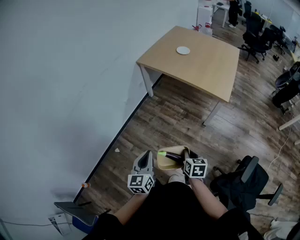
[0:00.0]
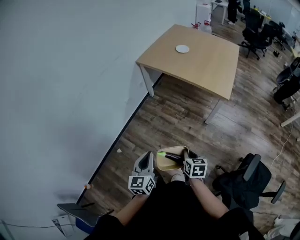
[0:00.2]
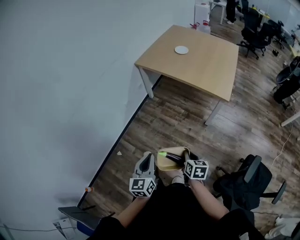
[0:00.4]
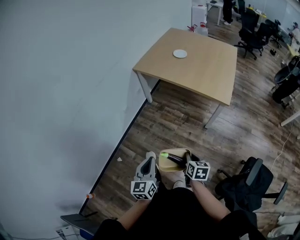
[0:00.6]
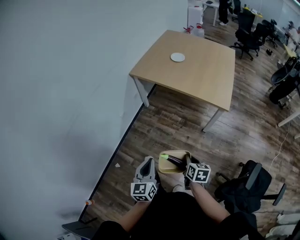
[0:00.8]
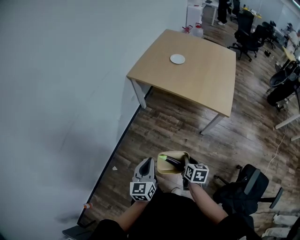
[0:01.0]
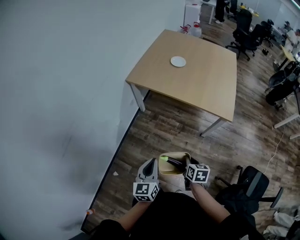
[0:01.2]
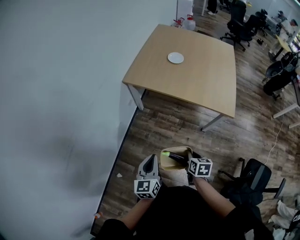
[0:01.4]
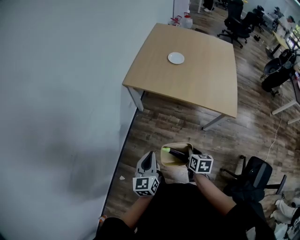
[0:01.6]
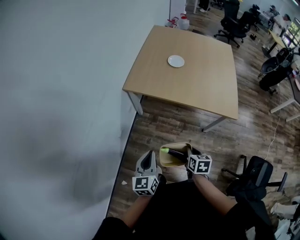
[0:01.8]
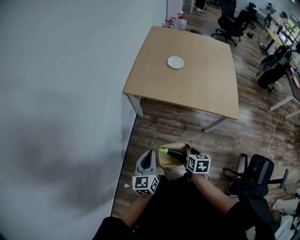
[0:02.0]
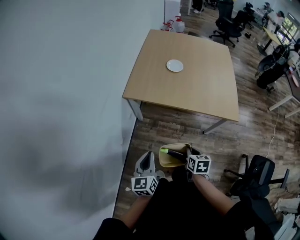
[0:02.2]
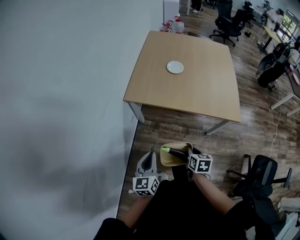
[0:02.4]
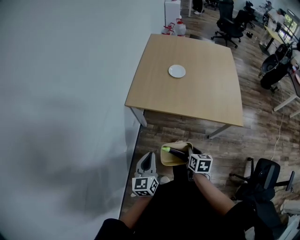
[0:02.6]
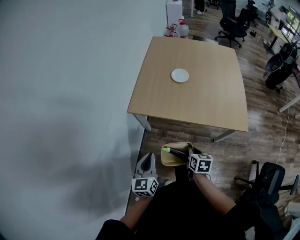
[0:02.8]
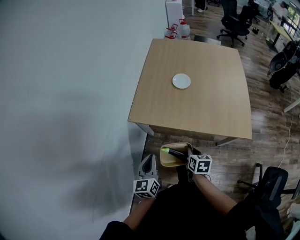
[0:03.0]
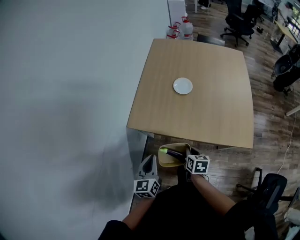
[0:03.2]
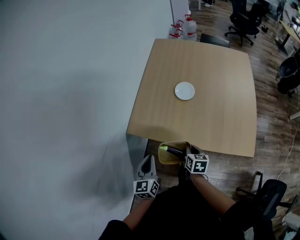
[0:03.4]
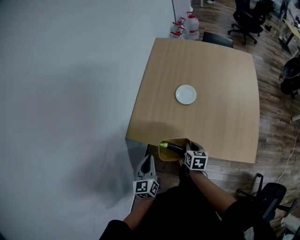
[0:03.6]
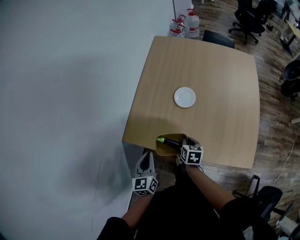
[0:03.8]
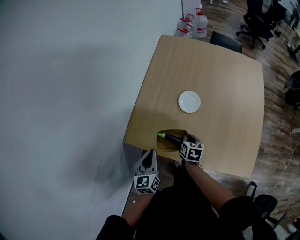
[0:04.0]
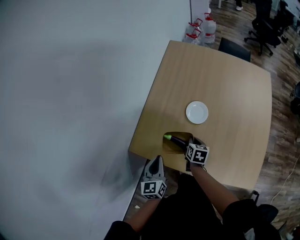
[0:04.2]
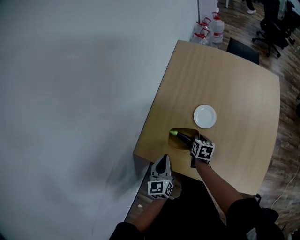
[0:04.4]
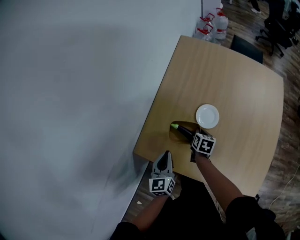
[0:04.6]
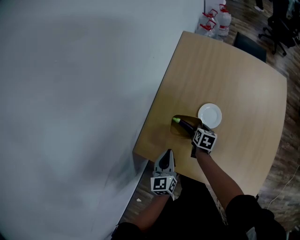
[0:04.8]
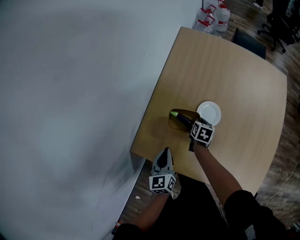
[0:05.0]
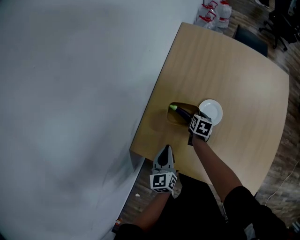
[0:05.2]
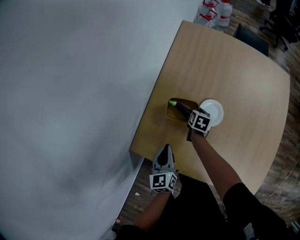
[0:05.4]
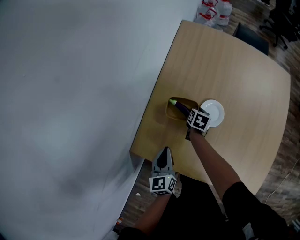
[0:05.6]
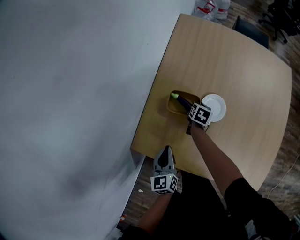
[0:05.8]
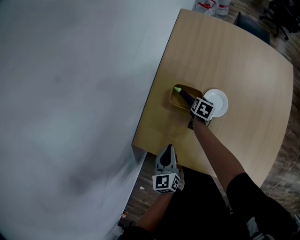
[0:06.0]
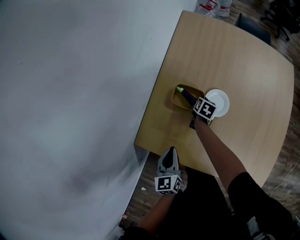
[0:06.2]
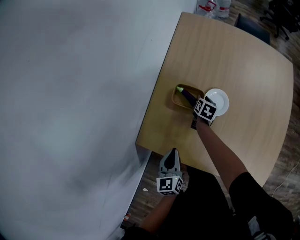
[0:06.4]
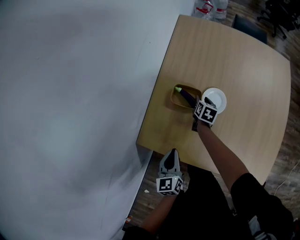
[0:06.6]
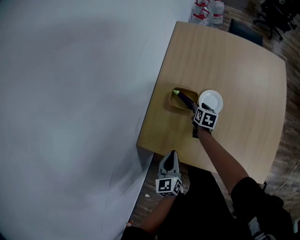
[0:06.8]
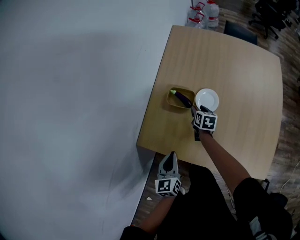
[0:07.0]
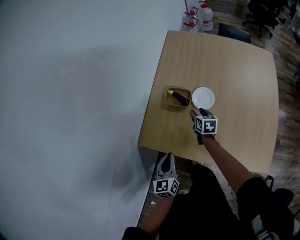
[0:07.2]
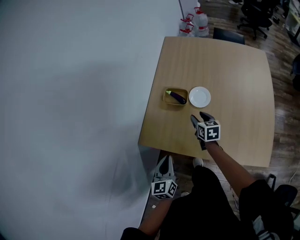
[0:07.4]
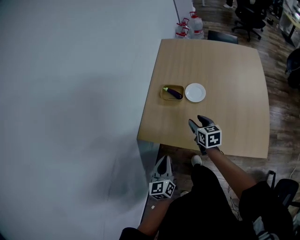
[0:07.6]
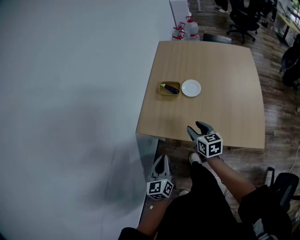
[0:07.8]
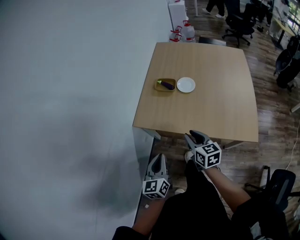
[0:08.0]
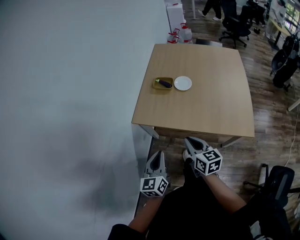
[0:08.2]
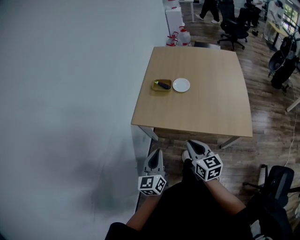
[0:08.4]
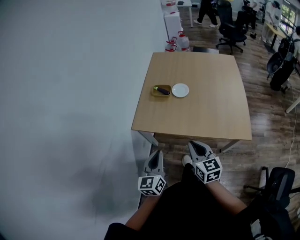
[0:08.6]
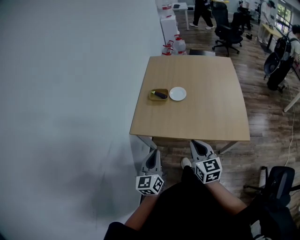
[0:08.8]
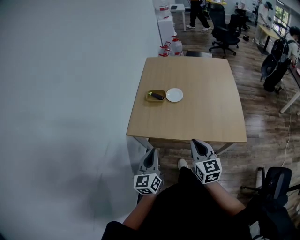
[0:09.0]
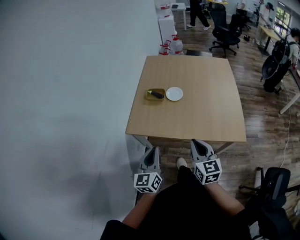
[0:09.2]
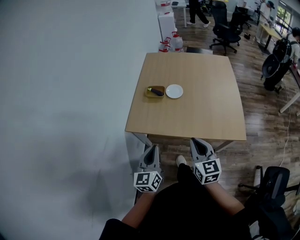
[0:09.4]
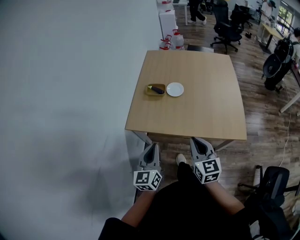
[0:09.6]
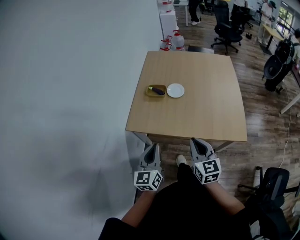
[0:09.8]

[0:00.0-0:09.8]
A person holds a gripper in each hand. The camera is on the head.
0:00.0 to 0:01.4: Both grippers move forward, approximately 30 cm.
0:01.4 to 0:02.8: The two grippers go roughly 25 cm forward and to the left.
0:02.8 to 0:04.2: The two grippers go roughly 40 cm forward.
0:04.2 to 0:05.6: The left gripper shifts roughly 10 cm forward; the right gripper heads forward and downward, covering some 20 cm.
0:05.6 to 0:07.0: The right gripper goes some 10 cm backward and upward, and opens its fingers. The left gripper moves backward, roughly 10 cm.
0:07.0 to 0:08.4: The right gripper goes some 60 cm backward and upward, changes its angle by about 30 degrees, and closes up. Meanwhile the left gripper goes approximately 30 cm backward and upward.
0:08.4 to 0:09.8: The left gripper shifts roughly 5 cm forward. The right gripper ends up about 5 cm from where it was.

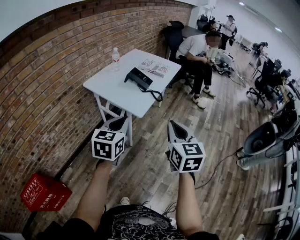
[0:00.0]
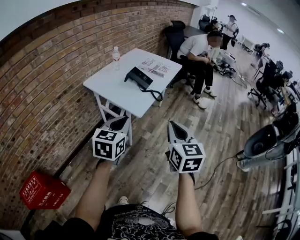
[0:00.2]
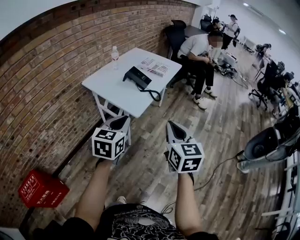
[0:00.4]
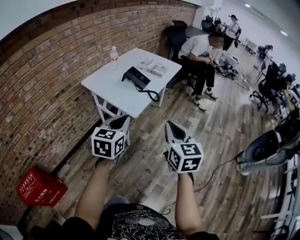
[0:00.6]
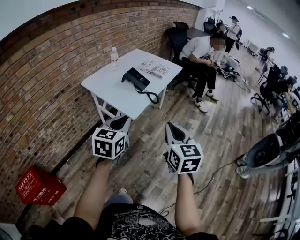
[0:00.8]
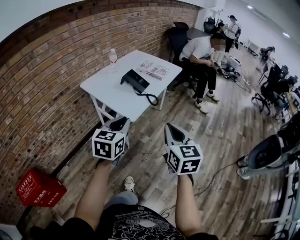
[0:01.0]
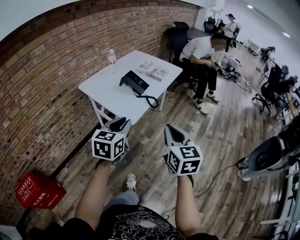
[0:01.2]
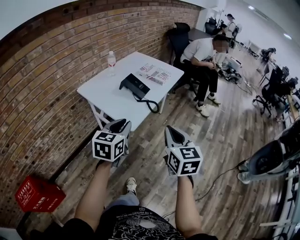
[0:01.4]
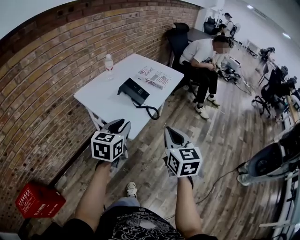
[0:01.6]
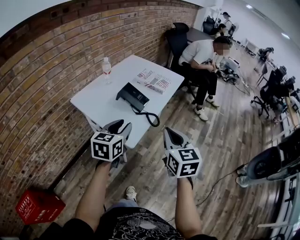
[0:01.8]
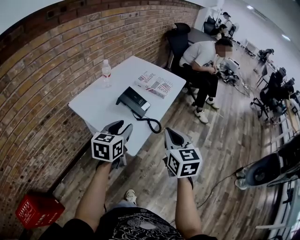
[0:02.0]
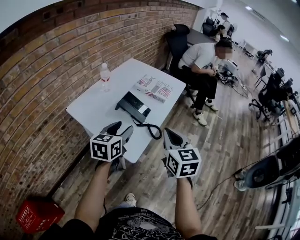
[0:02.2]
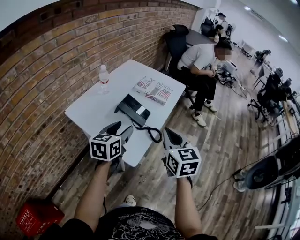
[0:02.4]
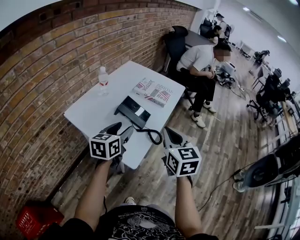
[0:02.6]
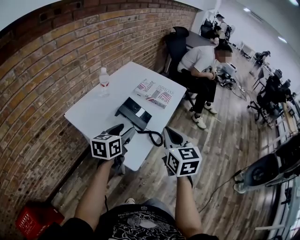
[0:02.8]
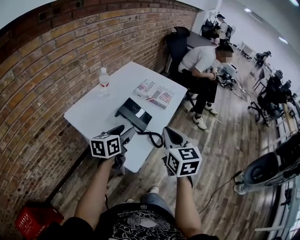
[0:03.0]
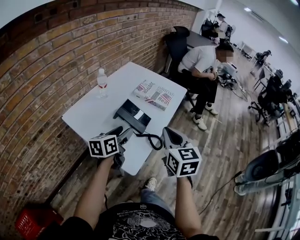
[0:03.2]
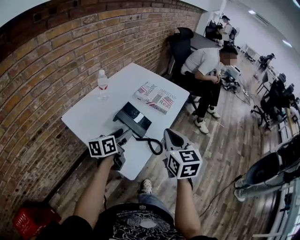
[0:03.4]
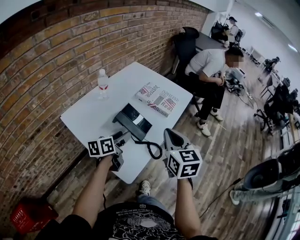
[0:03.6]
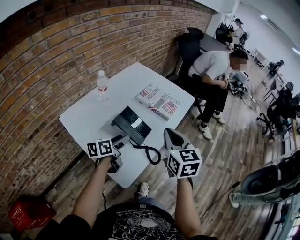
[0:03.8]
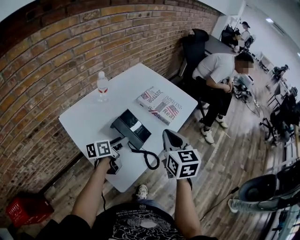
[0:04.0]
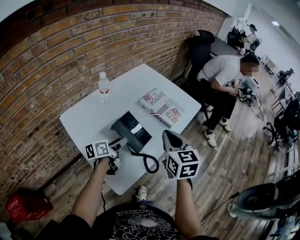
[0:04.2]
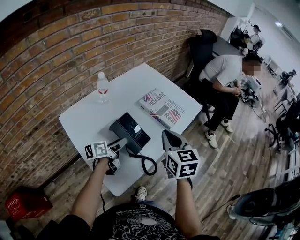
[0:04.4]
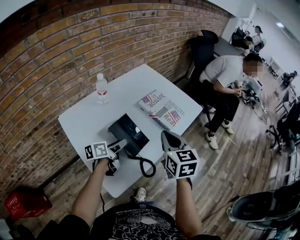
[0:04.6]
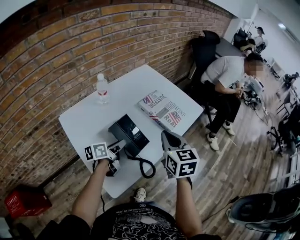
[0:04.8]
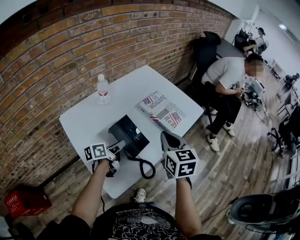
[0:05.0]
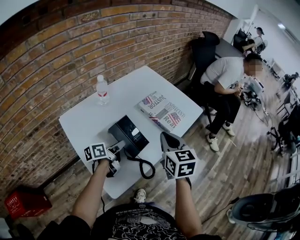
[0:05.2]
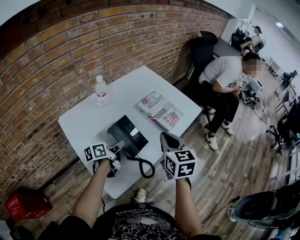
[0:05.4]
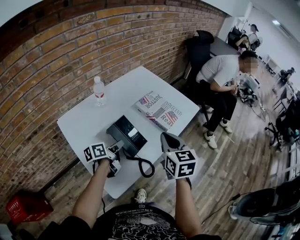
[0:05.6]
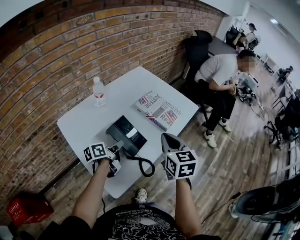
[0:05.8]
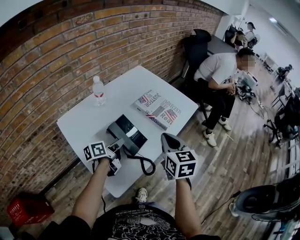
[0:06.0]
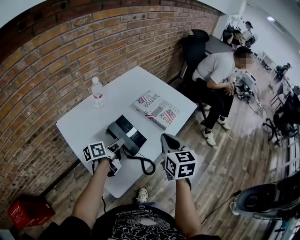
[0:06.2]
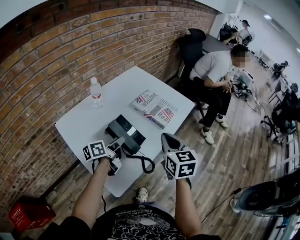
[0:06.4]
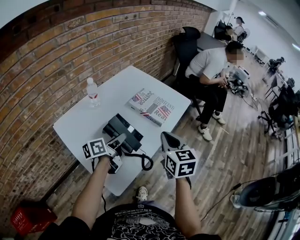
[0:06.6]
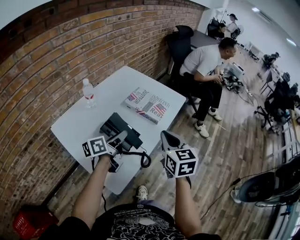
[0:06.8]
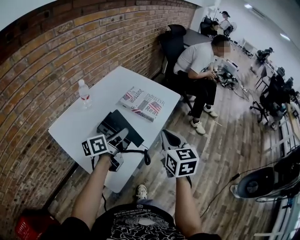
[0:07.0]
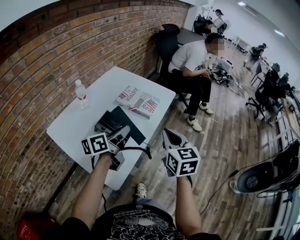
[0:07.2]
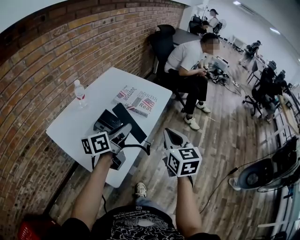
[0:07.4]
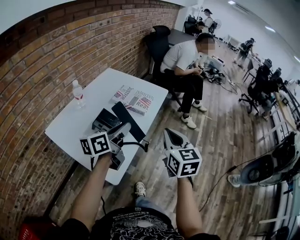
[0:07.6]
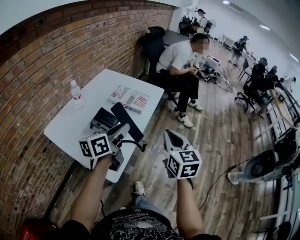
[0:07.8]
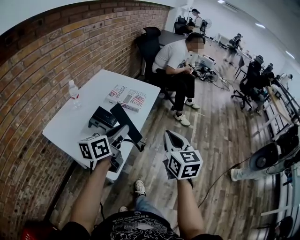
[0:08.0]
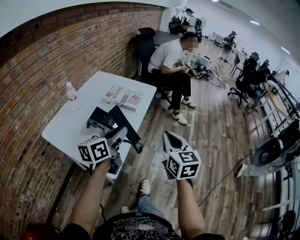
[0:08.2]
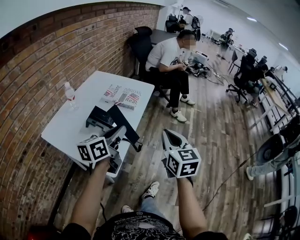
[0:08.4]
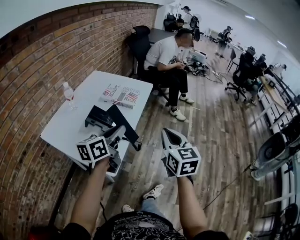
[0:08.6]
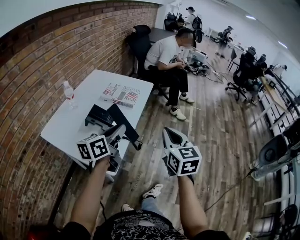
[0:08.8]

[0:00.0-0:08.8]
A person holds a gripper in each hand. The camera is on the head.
0:00.0 to 0:01.4: The left gripper heads forward and to the right, covering approximately 15 cm, while the right gripper heads forward, covering some 10 cm.
0:01.4 to 0:03.0: The grippers both shift forward by some 25 cm. The left gripper swivels some 20 degrees, and opens its fingers.
0:03.0 to 0:04.4: The left gripper moves forward and downward, some 20 cm, and rotates roughly 30 degrees, while the right gripper is displaced forward by some 20 cm.
0:04.4 to 0:05.8: The left gripper closes.
0:05.8 to 0:07.4: The right gripper moves backward and to the right, some 15 cm. Meanwhile the left gripper shifts roughly 20 cm upward and to the right, and swivels approximately 30 degrees.
0:07.4 to 0:08.8: The left gripper moves backward, about 10 cm. The right gripper moves backward and to the right, roughly 10 cm.

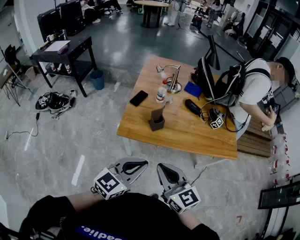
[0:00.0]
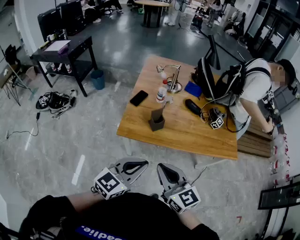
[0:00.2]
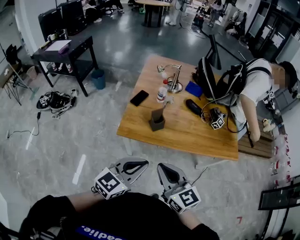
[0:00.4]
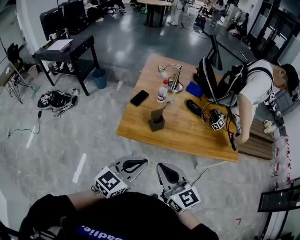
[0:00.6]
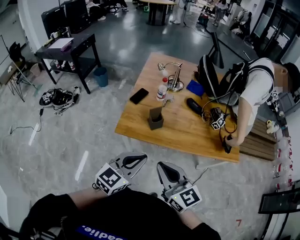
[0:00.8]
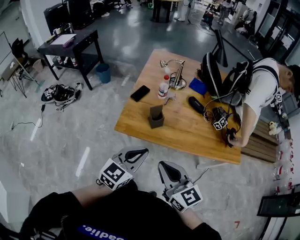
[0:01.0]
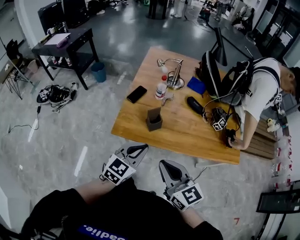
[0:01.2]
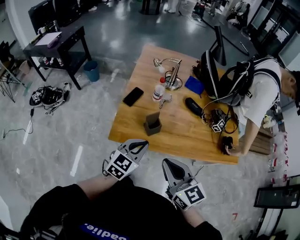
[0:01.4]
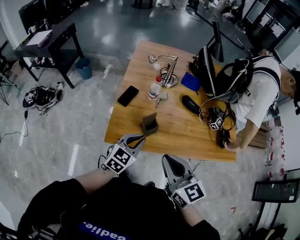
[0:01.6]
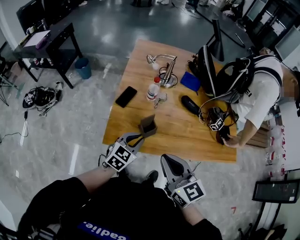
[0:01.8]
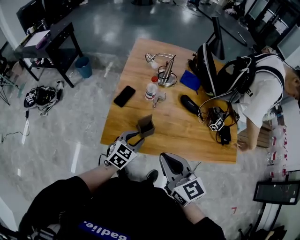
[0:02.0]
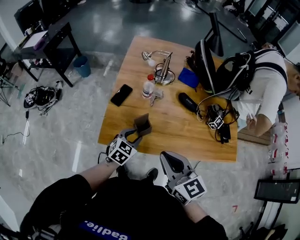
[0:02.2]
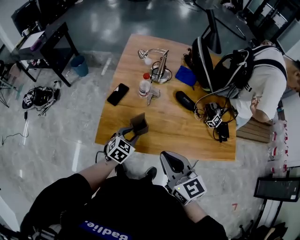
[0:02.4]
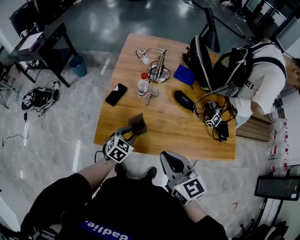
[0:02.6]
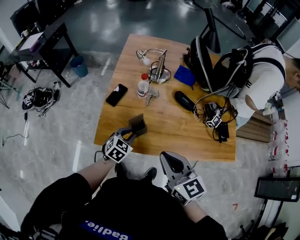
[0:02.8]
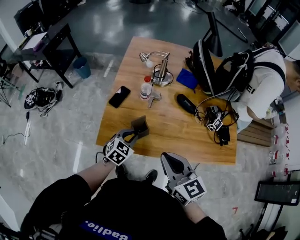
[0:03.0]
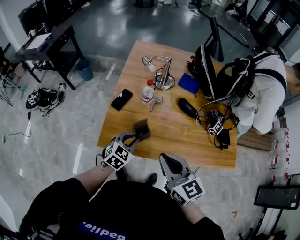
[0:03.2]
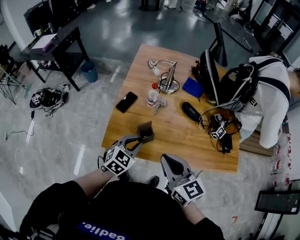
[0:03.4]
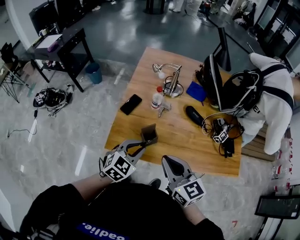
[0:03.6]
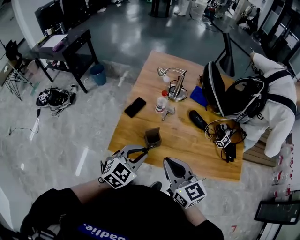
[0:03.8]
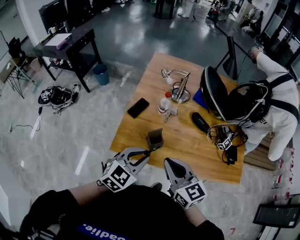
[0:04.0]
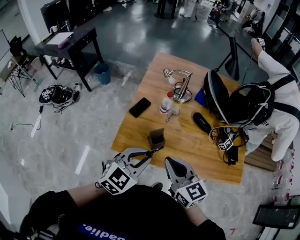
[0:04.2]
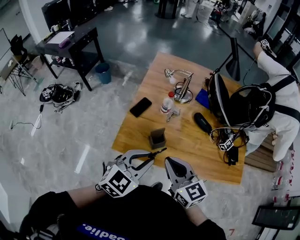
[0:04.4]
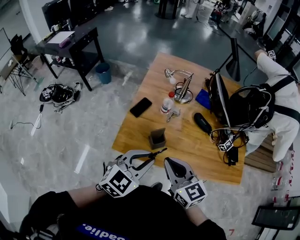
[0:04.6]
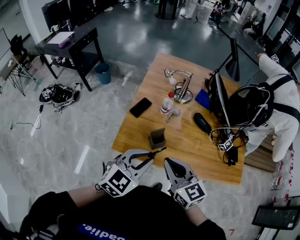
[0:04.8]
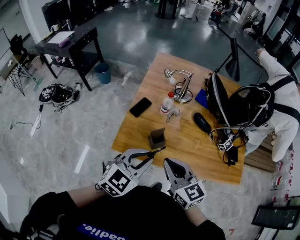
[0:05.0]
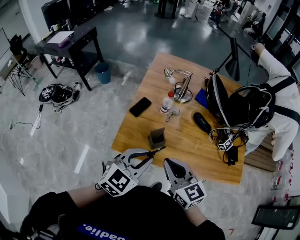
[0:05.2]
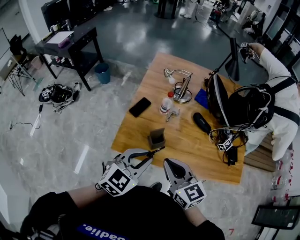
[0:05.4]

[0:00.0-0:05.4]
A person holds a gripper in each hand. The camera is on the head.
0:00.0 to 0:01.4: The left gripper goes about 20 cm forward and downward; the right gripper is displaced forward by approximately 10 cm.
0:01.4 to 0:02.8: The right gripper moves forward and to the right, roughly 10 cm; the left gripper goes roughly 20 cm downward and forward, and rotates some 20 degrees.
0:02.8 to 0:04.0: The left gripper goes roughly 20 cm upward and backward. The right gripper changes place by some 5 cm.
0:04.0 to 0:05.4: The grippers make only small movements.
